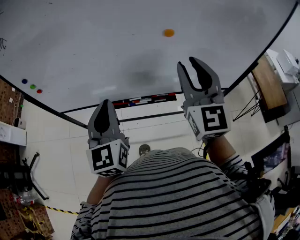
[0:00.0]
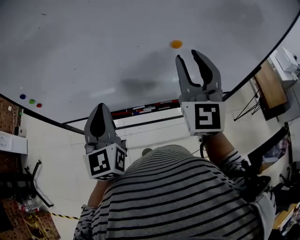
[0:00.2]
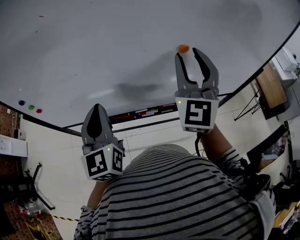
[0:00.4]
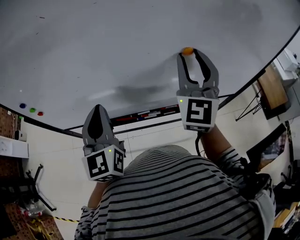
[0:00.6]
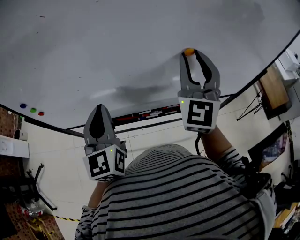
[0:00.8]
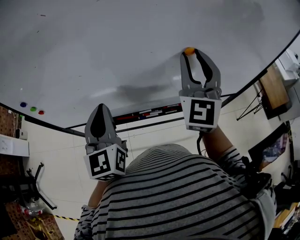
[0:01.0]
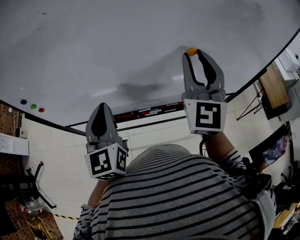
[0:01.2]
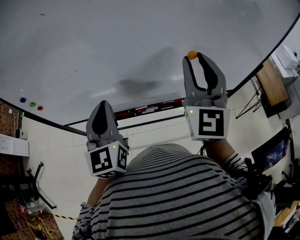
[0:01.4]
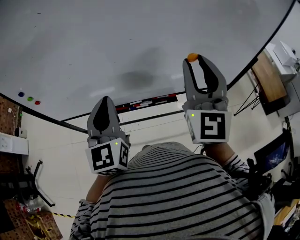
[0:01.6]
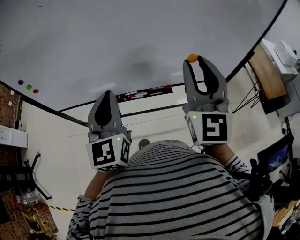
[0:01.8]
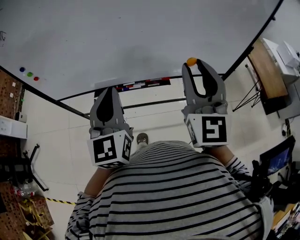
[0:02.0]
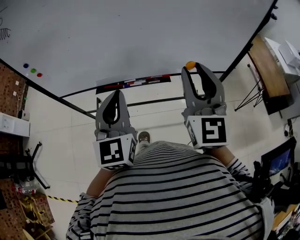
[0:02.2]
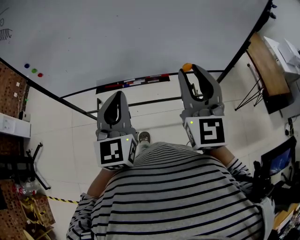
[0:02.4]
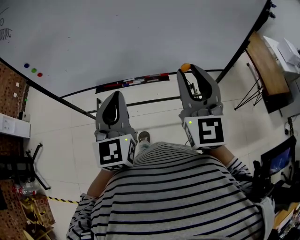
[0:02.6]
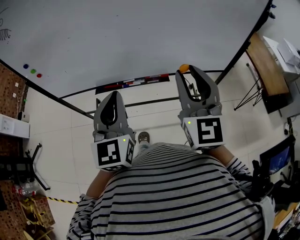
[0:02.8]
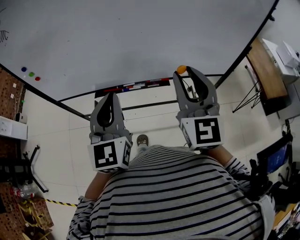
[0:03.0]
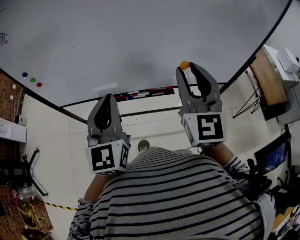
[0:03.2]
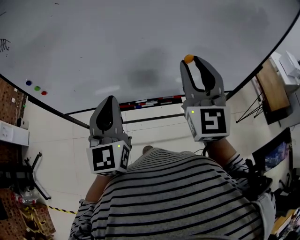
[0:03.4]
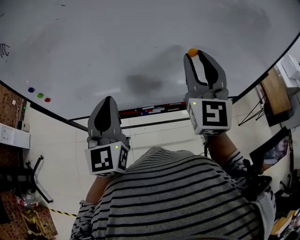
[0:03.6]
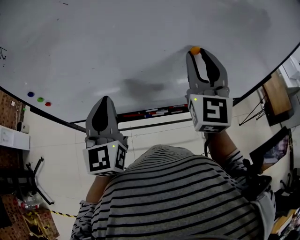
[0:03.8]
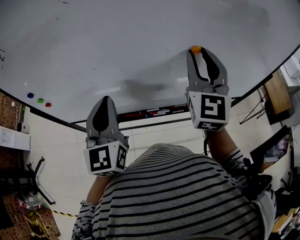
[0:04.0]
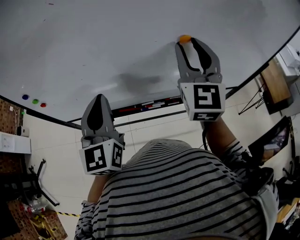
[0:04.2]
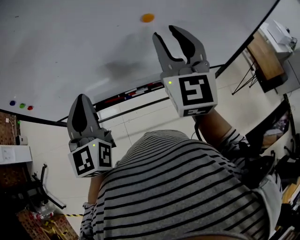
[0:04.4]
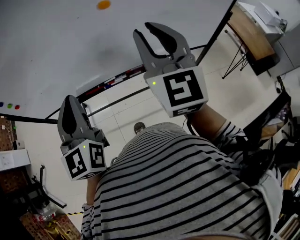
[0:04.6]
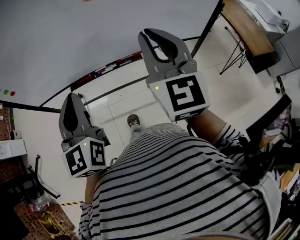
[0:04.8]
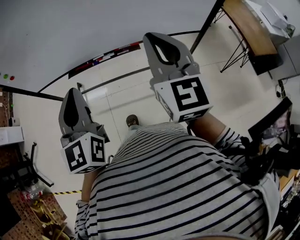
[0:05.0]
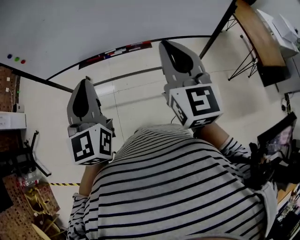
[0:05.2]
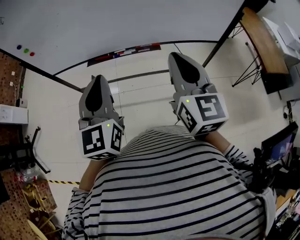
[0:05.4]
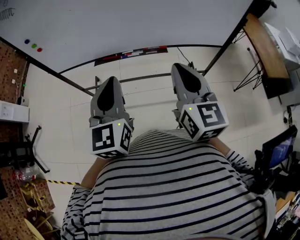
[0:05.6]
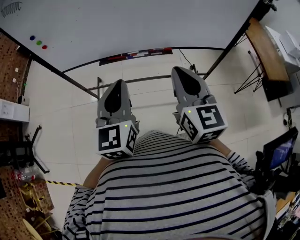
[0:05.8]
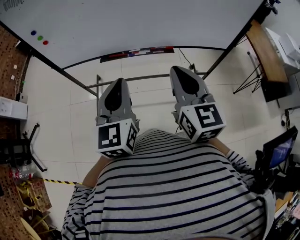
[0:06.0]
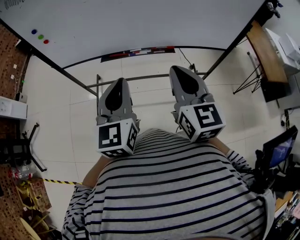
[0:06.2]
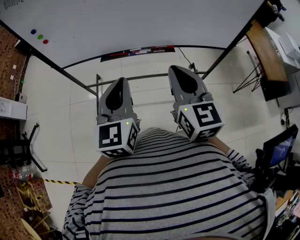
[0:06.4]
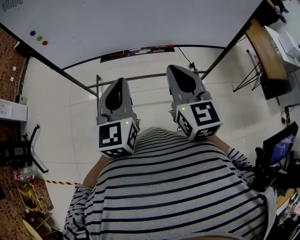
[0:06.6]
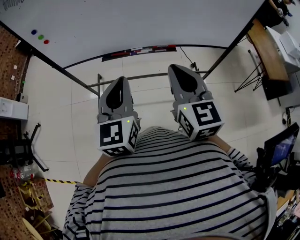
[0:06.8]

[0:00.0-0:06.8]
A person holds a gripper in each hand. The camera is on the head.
0:00.0 to 0:01.4: The left gripper travels forward by roughly 5 cm.
0:01.4 to 0:02.8: The left gripper is displaced backward and to the right by roughly 20 cm; the right gripper heads backward, covering some 15 cm.
0:02.8 to 0:04.0: The left gripper is displaced forward and to the left by about 20 cm; the right gripper goes some 20 cm forward.
0:04.0 to 0:05.4: The left gripper is displaced backward and to the right by roughly 30 cm. The right gripper shifts roughly 30 cm backward, swivels approximately 30 degrees, and closes.
0:05.4 to 0:06.8: The right gripper goes roughly 10 cm to the left.

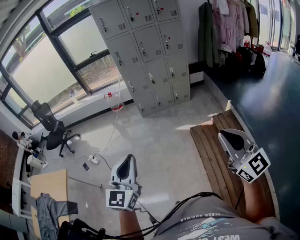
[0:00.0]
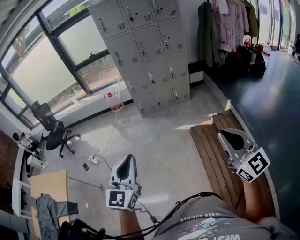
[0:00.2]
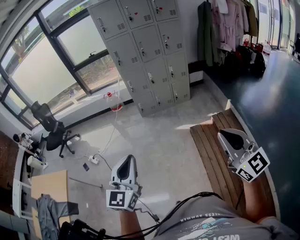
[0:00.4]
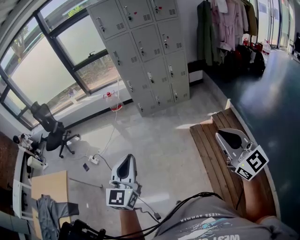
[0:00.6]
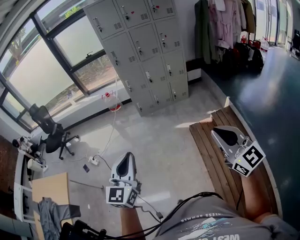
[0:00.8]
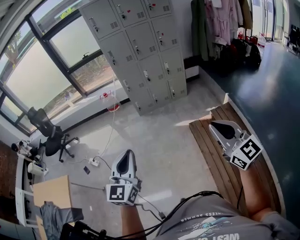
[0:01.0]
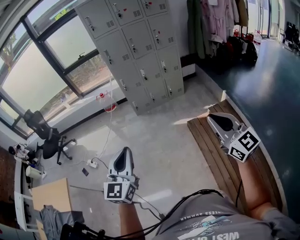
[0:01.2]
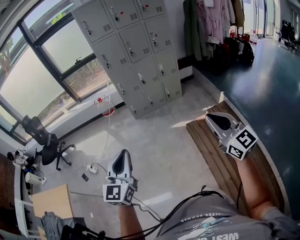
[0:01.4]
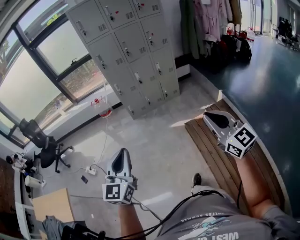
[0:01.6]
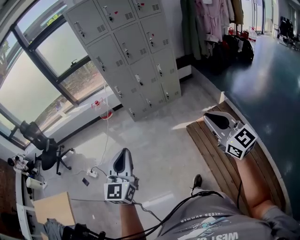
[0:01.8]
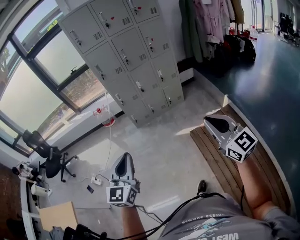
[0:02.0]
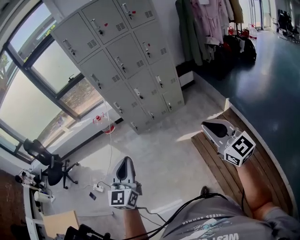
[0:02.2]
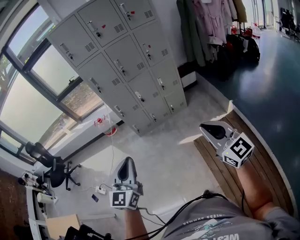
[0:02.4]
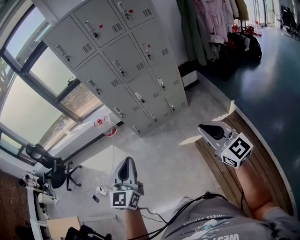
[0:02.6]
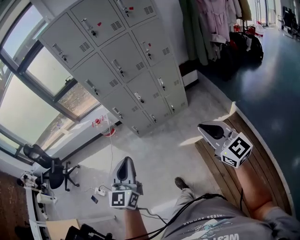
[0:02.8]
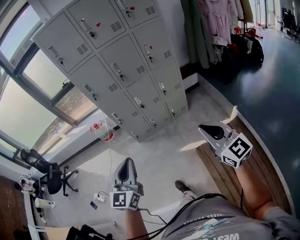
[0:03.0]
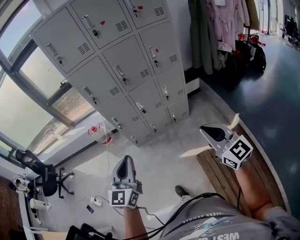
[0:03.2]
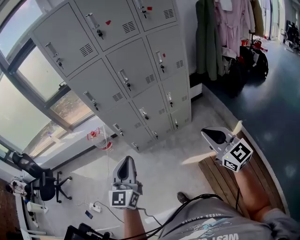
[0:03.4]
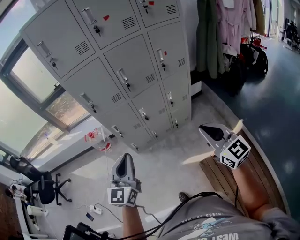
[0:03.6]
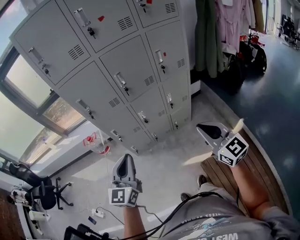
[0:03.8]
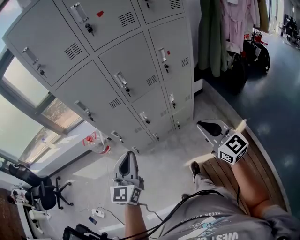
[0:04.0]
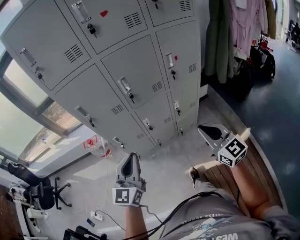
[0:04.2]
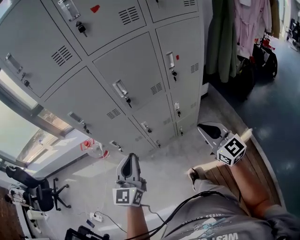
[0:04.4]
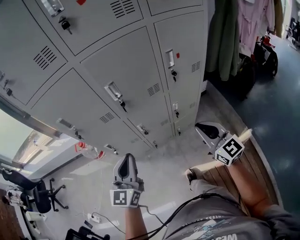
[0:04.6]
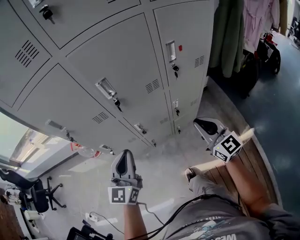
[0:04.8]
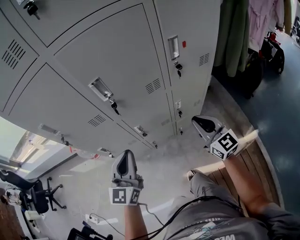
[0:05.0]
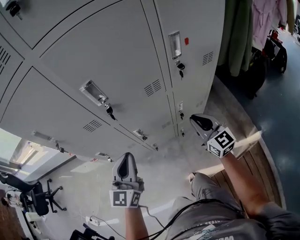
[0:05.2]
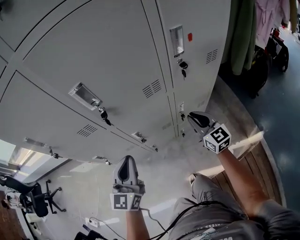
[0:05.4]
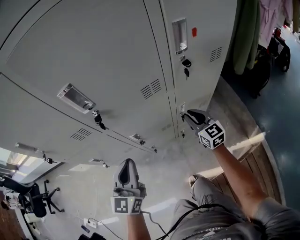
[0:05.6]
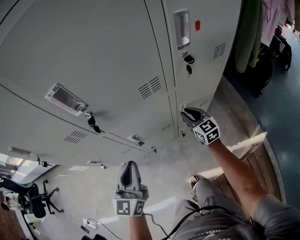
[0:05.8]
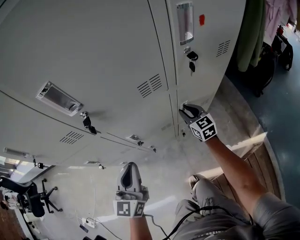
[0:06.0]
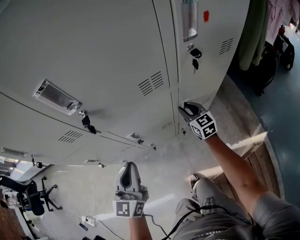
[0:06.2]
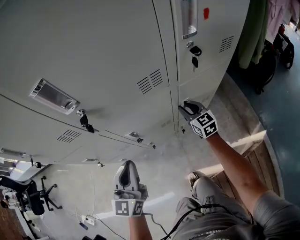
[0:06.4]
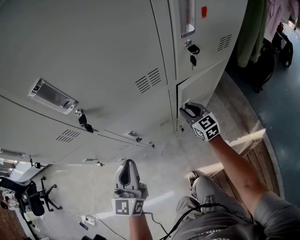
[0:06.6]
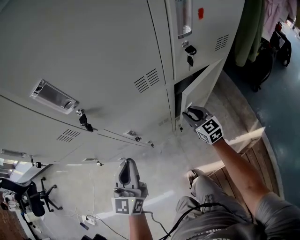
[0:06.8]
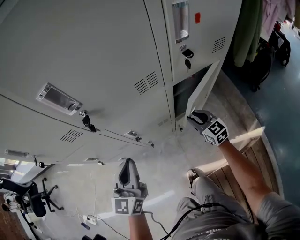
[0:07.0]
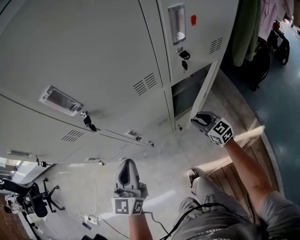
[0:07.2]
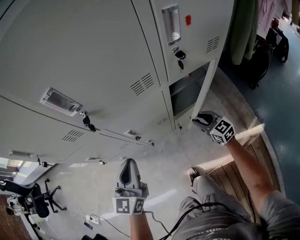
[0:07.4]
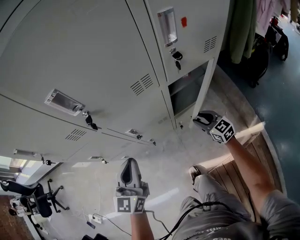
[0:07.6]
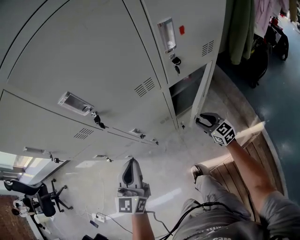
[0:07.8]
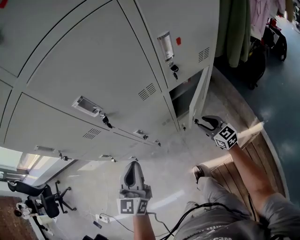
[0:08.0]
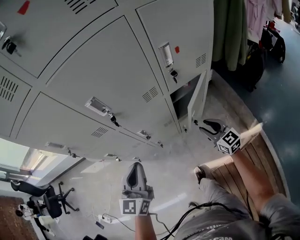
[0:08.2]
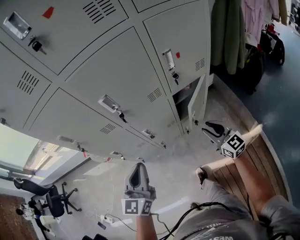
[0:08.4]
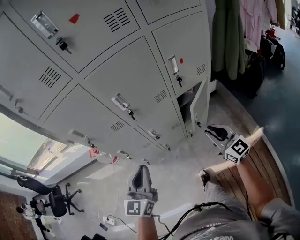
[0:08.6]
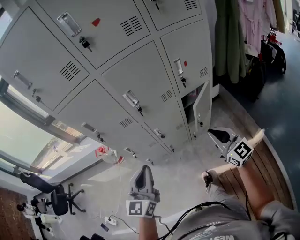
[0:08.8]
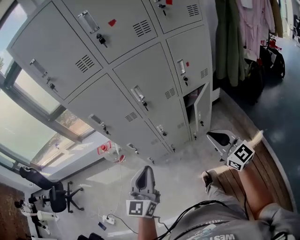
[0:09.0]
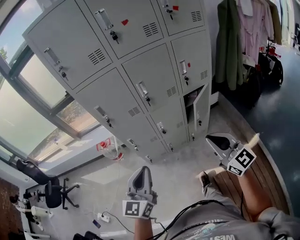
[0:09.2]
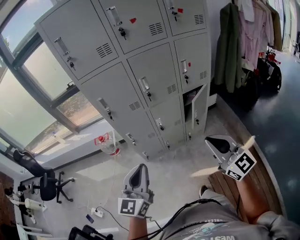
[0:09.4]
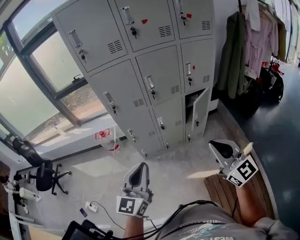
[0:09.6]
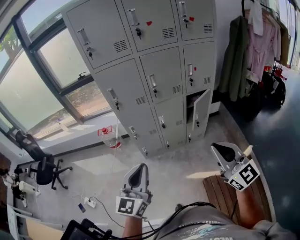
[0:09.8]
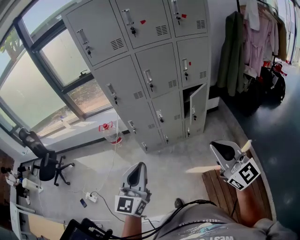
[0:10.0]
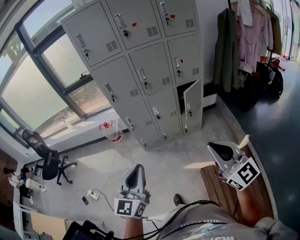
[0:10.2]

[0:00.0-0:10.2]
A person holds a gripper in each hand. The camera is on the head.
0:00.0 to 0:01.4: The grippers both shift forward by some 10 cm.
0:01.4 to 0:03.0: Both grippers move forward, approximately 40 cm.
0:03.0 to 0:04.4: The pair of grippers is taken forward, some 40 cm.
0:04.4 to 0:05.8: The right gripper goes roughly 50 cm downward and forward; the left gripper travels downward and forward by about 30 cm.
0:05.8 to 0:07.2: The right gripper moves backward, roughly 5 cm.
0:07.2 to 0:08.8: The two grippers go approximately 40 cm upward and backward. The right gripper changes its angle by about 20 degrees, and closes its fingers.
0:08.8 to 0:10.2: The left gripper is displaced backward by approximately 40 cm; the right gripper heads backward and upward, covering roughly 40 cm.

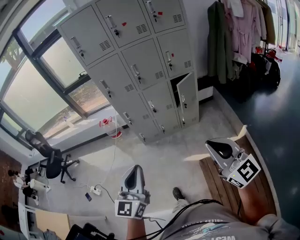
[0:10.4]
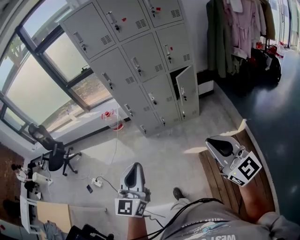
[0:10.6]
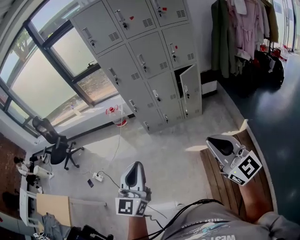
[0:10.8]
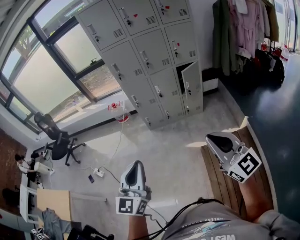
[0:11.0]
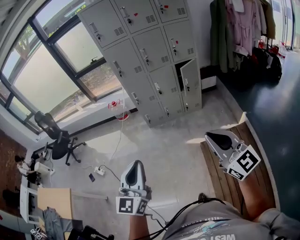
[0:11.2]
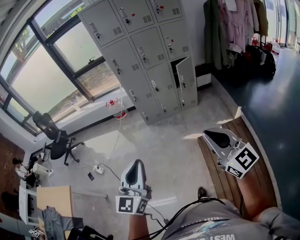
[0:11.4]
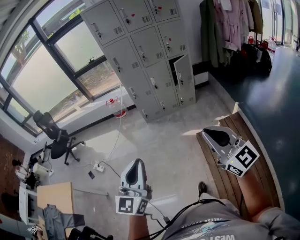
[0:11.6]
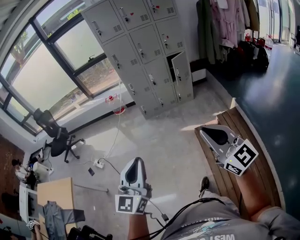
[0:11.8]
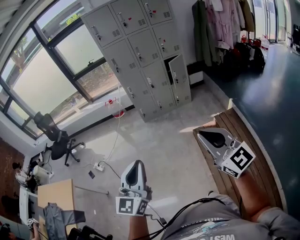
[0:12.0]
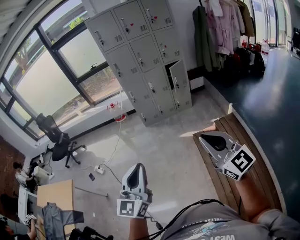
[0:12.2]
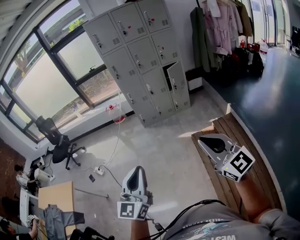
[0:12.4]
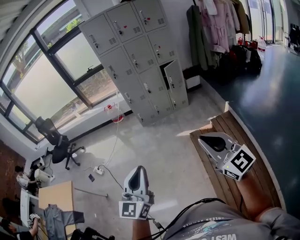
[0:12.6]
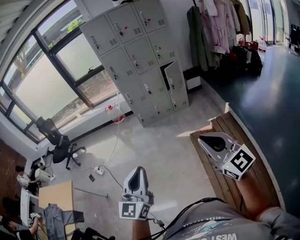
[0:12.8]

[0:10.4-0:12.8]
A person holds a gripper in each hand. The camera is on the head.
0:10.4 to 0:11.6: The two grippers go roughly 35 cm backward.
0:11.6 to 0:12.8: Both grippers move backward, approximately 15 cm.

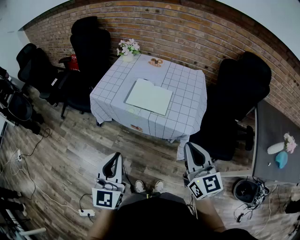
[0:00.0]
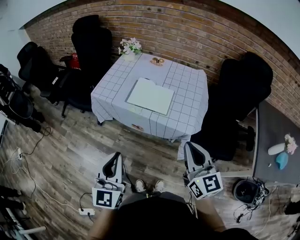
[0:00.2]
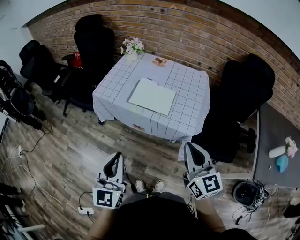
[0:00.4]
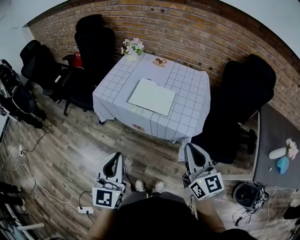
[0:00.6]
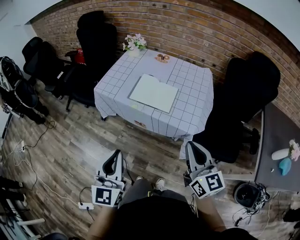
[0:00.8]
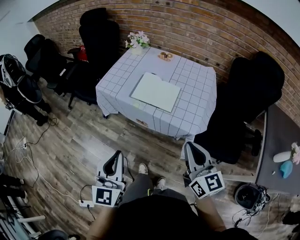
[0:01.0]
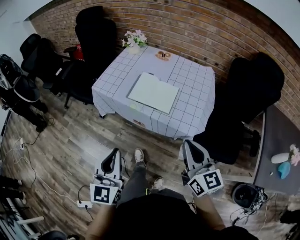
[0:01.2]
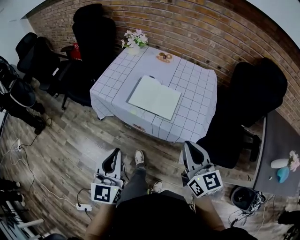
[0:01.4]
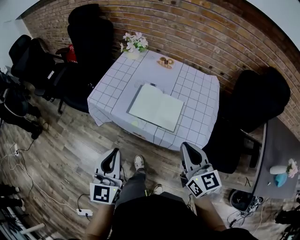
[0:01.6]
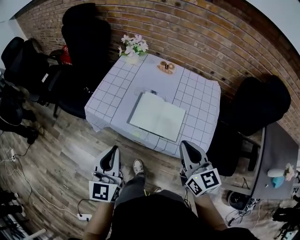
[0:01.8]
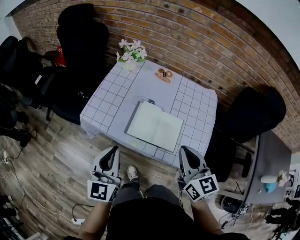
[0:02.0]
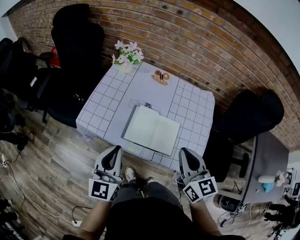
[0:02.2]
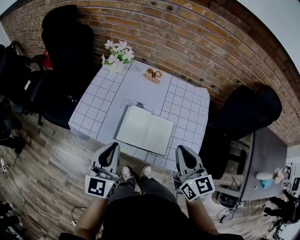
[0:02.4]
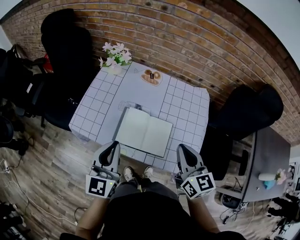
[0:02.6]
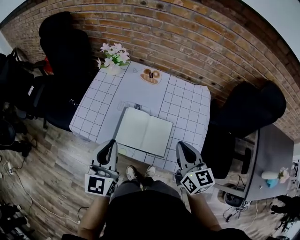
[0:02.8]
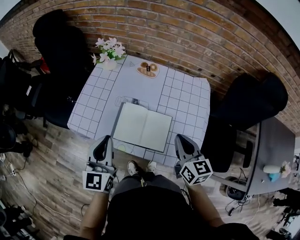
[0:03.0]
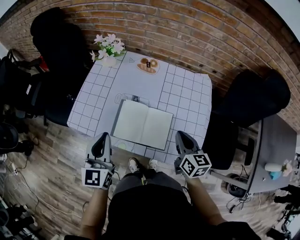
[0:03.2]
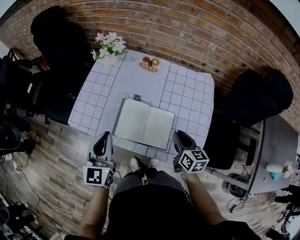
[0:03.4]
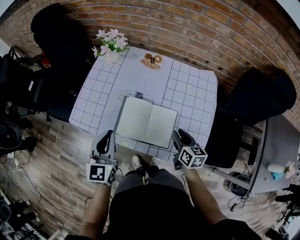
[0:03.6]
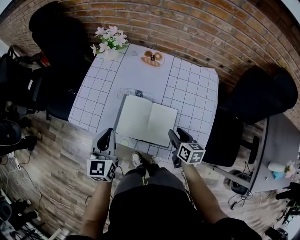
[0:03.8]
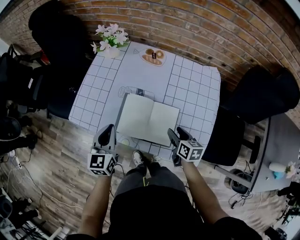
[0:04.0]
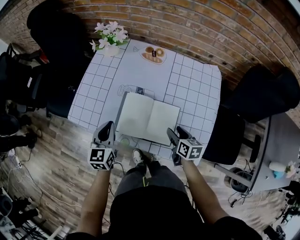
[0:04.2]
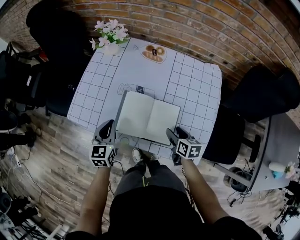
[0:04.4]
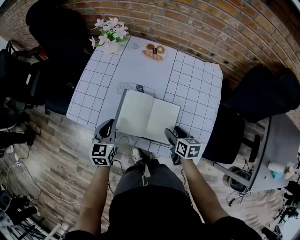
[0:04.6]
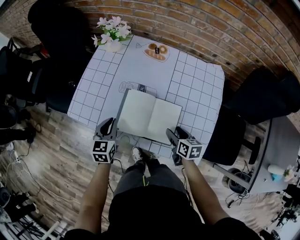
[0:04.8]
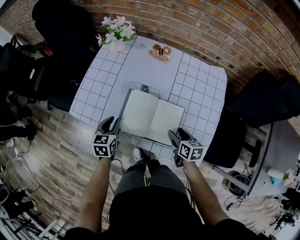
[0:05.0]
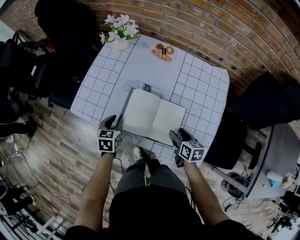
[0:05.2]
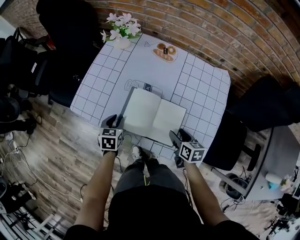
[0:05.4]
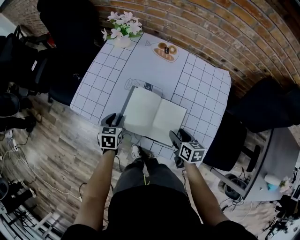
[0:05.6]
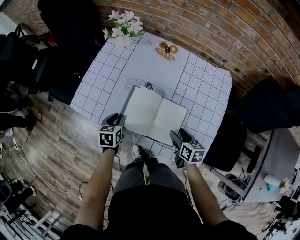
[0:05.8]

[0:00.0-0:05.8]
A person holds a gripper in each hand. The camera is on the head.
0:00.0 to 0:01.4: Both grippers travel together forward, approximately 10 cm.
0:01.4 to 0:02.8: Both grippers travel together forward, approximately 25 cm.
0:02.8 to 0:04.4: The two grippers go roughly 20 cm downward. The right gripper changes its angle by approximately 40 degrees, and opens its fingers; the left gripper rotates about 20 degrees.
0:04.4 to 0:05.8: The left gripper shifts approximately 10 cm downward, and rotates approximately 30 degrees.
